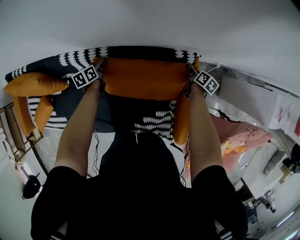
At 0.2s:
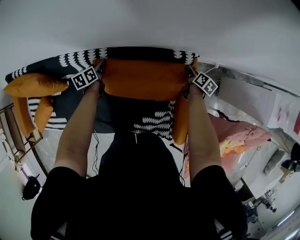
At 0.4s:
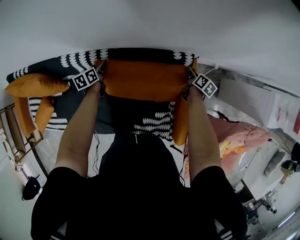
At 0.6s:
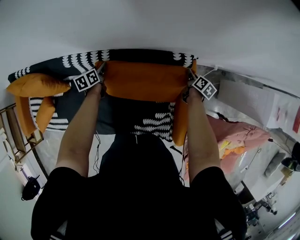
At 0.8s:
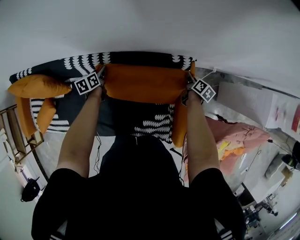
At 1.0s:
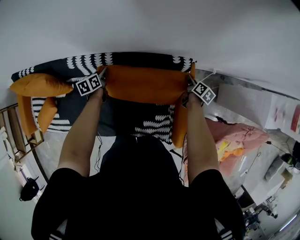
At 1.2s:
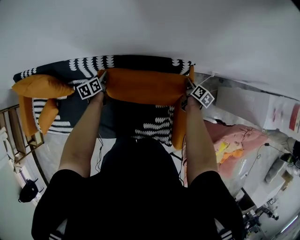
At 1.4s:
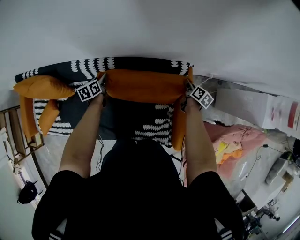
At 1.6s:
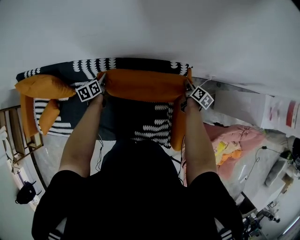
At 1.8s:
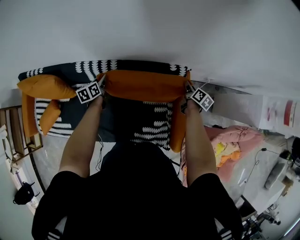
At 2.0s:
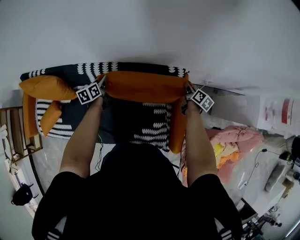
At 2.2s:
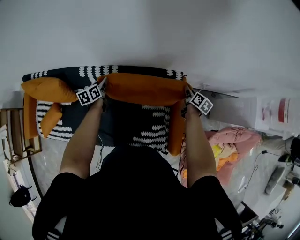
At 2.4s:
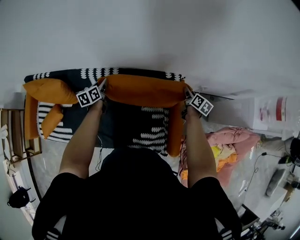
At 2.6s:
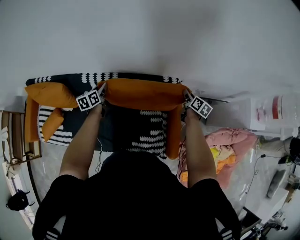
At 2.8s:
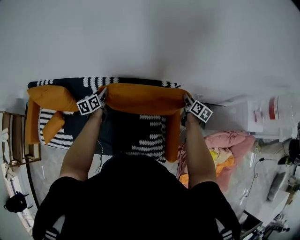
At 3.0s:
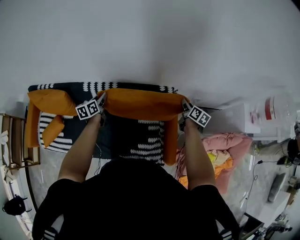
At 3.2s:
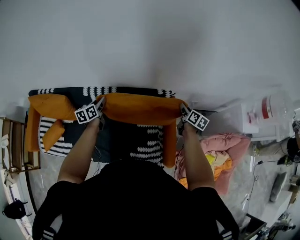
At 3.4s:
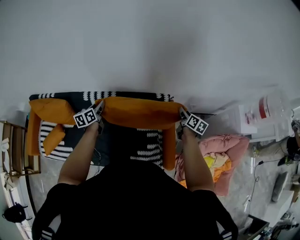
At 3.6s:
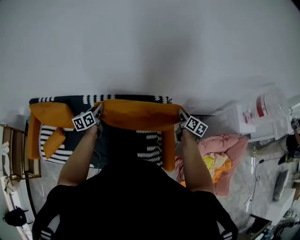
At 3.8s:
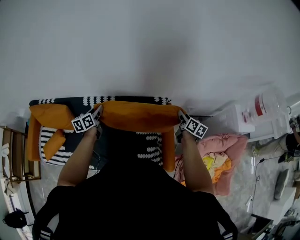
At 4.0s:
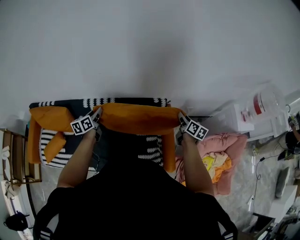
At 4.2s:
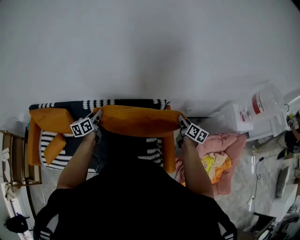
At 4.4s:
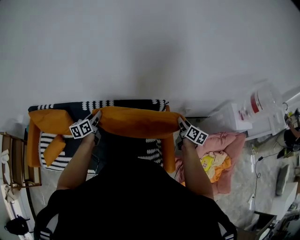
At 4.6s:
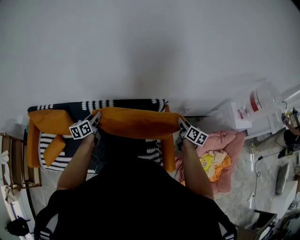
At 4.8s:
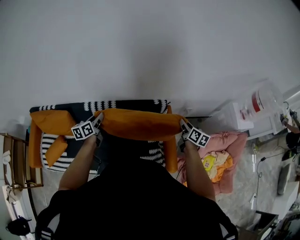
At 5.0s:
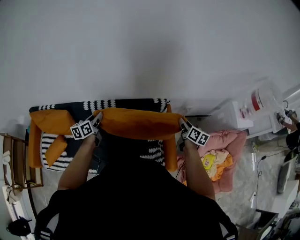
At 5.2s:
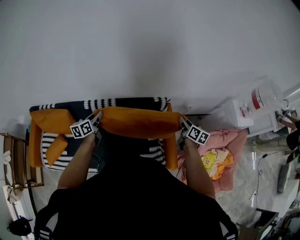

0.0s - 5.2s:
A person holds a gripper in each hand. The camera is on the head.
0.0s - 1.8s: Both grippers move upward and backward, some 15 cm. The right gripper closes up.
1.8s - 3.4s: The grippers both shift upward and backward by roughly 20 cm.
3.4s - 5.2s: The right gripper travels backward by some 10 cm; the left gripper moves some 5 cm.

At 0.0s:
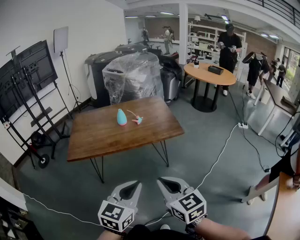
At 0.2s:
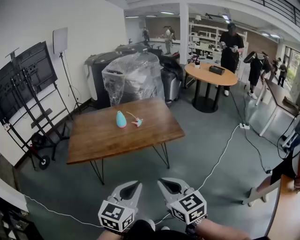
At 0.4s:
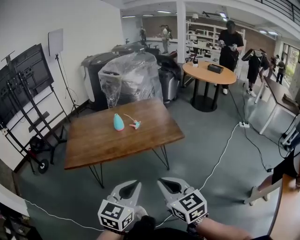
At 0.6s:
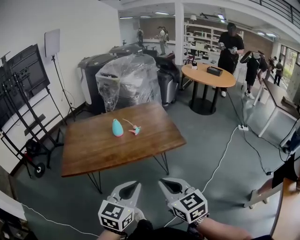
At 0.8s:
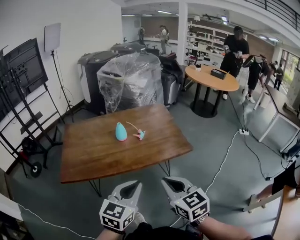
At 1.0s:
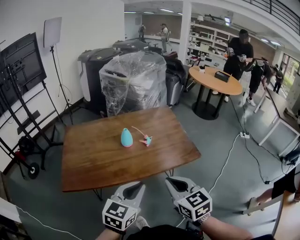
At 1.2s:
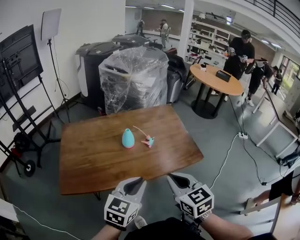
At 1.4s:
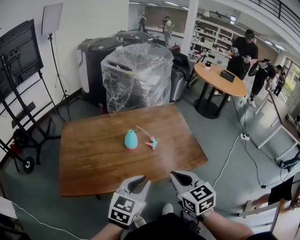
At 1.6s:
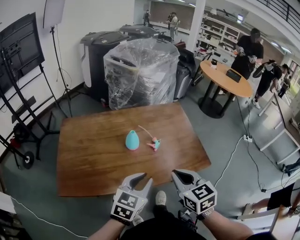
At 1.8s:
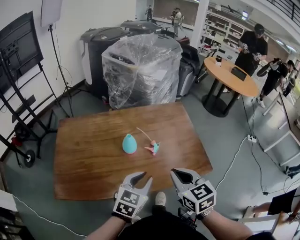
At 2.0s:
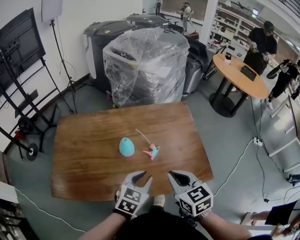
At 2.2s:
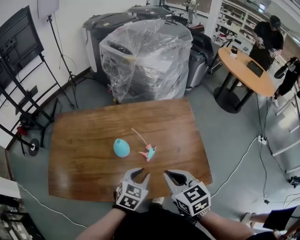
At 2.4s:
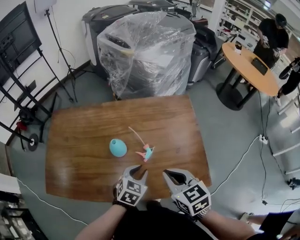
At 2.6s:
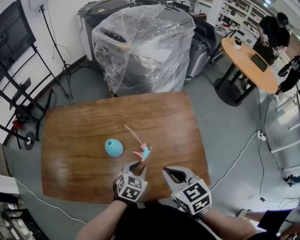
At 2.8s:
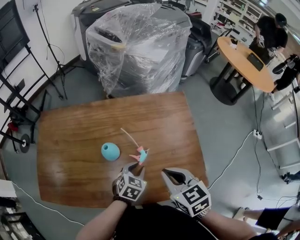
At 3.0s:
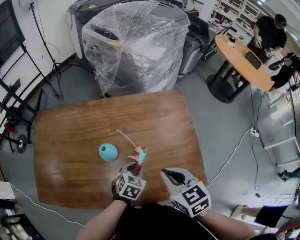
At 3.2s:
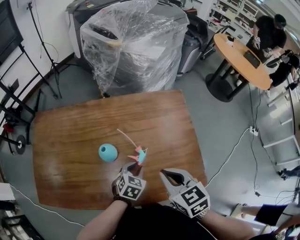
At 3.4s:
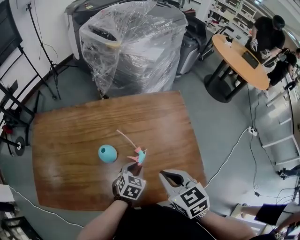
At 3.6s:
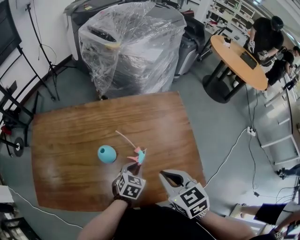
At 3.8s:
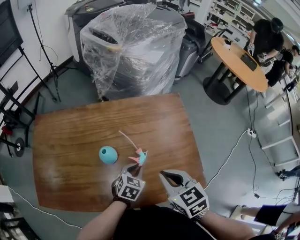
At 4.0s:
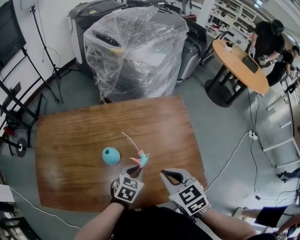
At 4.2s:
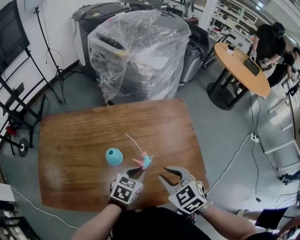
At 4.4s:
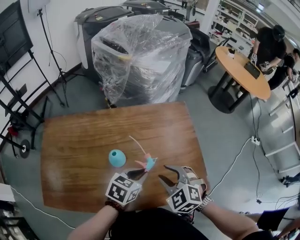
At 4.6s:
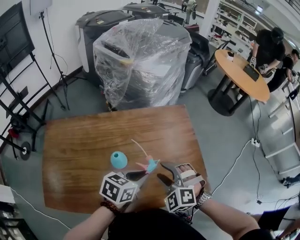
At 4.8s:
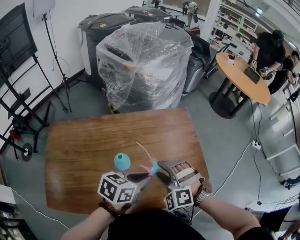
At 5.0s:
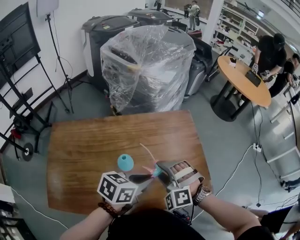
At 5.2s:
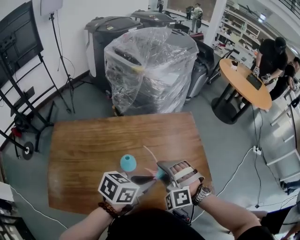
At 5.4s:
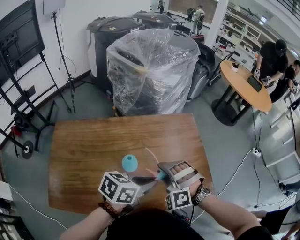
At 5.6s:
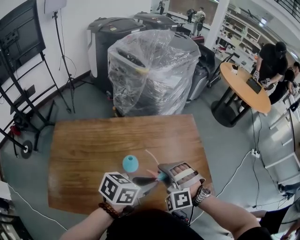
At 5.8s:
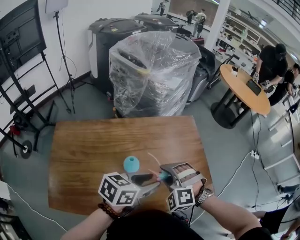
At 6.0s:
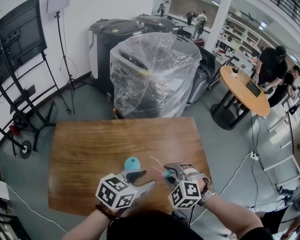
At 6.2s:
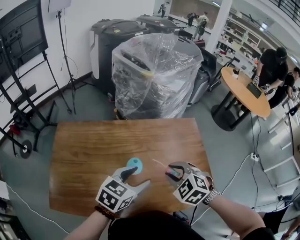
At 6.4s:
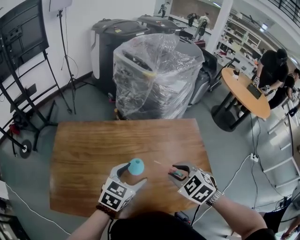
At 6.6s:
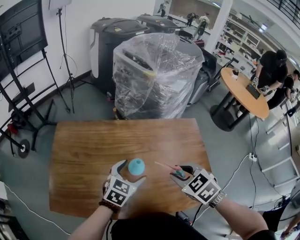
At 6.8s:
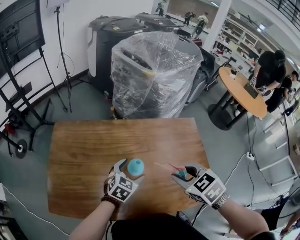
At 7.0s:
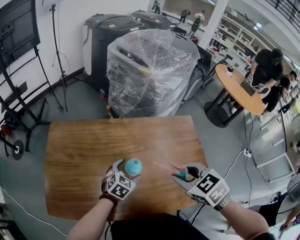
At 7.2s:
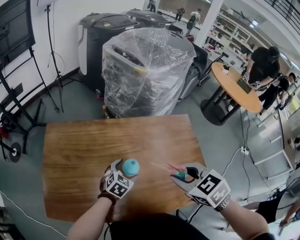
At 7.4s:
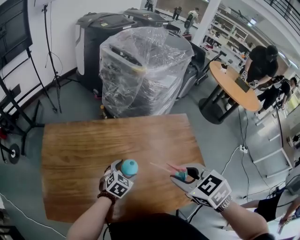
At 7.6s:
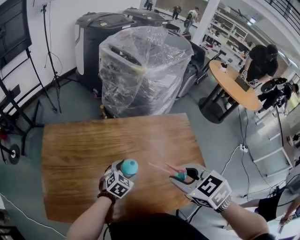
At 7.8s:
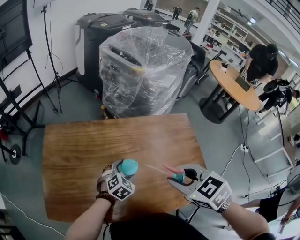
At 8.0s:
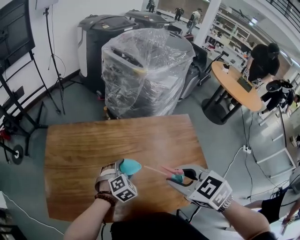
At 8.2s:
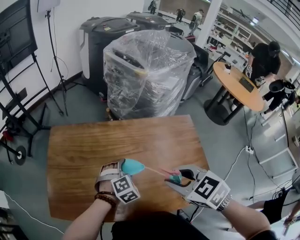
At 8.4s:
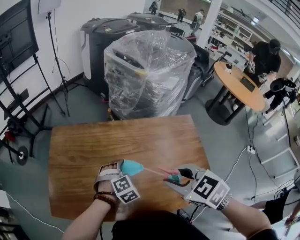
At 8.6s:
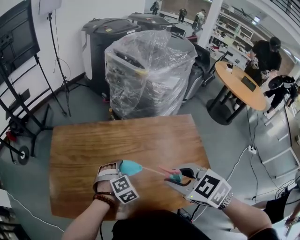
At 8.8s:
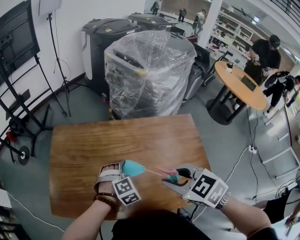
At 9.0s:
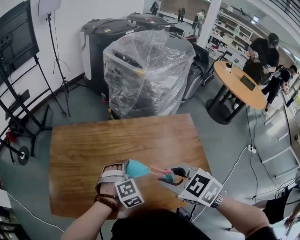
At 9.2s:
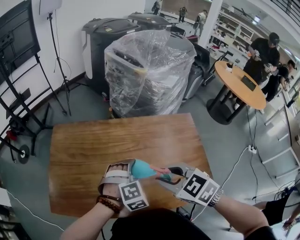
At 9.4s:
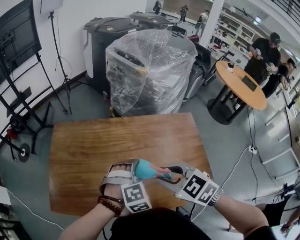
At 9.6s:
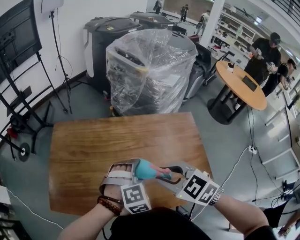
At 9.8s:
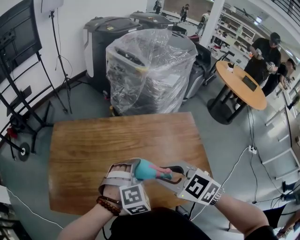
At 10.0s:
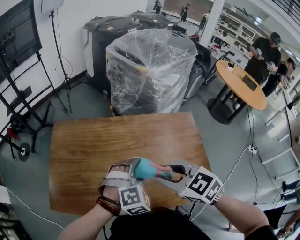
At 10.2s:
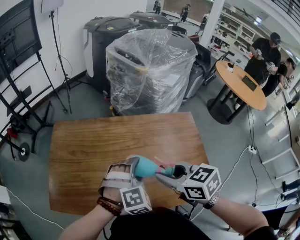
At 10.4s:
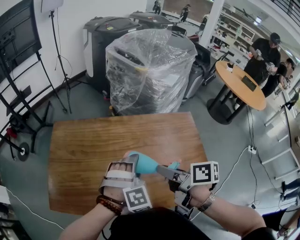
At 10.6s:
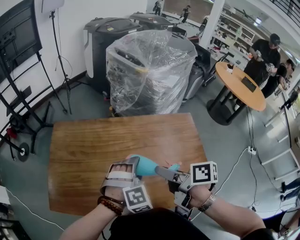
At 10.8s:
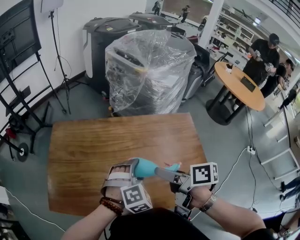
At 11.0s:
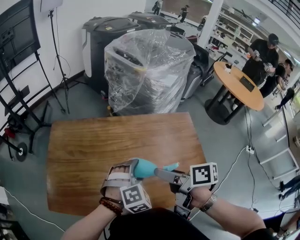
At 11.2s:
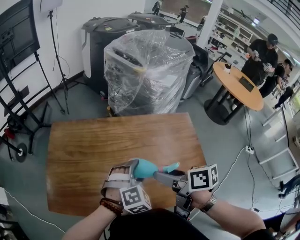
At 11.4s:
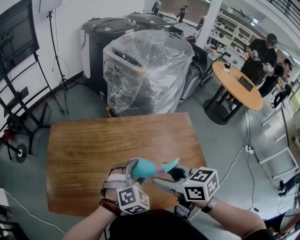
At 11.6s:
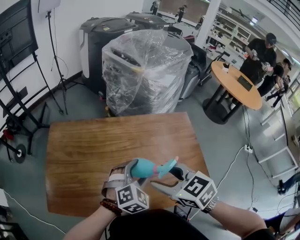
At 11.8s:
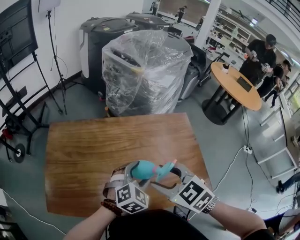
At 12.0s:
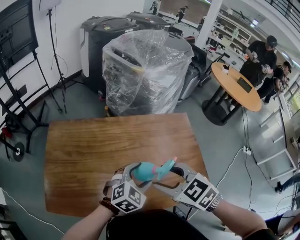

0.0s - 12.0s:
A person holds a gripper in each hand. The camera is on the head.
0.0s - 1.6s: The two grippers go approximately 35 cm forward.
1.6s - 3.0s: The right gripper heads forward and downward, covering some 20 cm. Meanwhile the left gripper heads downward and forward, covering approximately 30 cm, and rotates approximately 30 degrees.
3.0s - 4.4s: The left gripper travels upward by roughly 10 cm, and swivels some 20 degrees. The right gripper changes its angle by some 40 degrees, and opens.
4.4s - 6.0s: The right gripper goes roughly 5 cm to the left. The left gripper heads upward, covering about 10 cm, and opens its fingers.
6.0s - 7.6s: The left gripper is displaced downward by roughly 20 cm, rotates some 30 degrees, and opens its fingers. Meanwhile the right gripper shifts roughly 10 cm upward, and twists approximately 40 degrees clockwise, seen from behind.
7.6s - 9.0s: The left gripper travels upward by roughly 10 cm, and turns by roughly 40 degrees.
9.0s - 10.4s: The left gripper moves upward, about 5 cm. Meanwhile the right gripper rotates around the line of its fingers by approximately 70 degrees, clockwise from behind.
10.4s - 12.0s: The right gripper rotates around the line of its fingers by about 70 degrees, counterclockwise from behind, and opens; the left gripper moves roughly 5 cm, and rotates roughly 40 degrees.

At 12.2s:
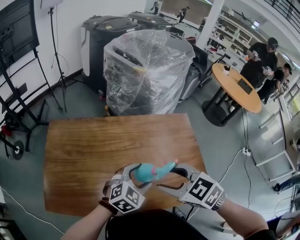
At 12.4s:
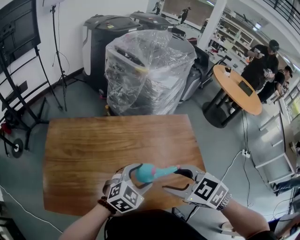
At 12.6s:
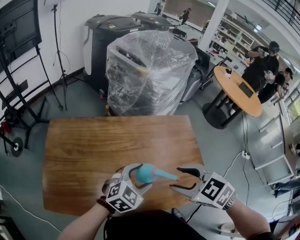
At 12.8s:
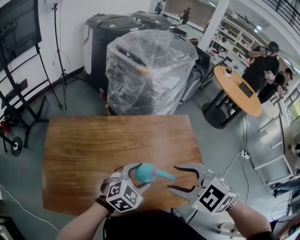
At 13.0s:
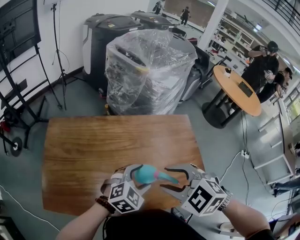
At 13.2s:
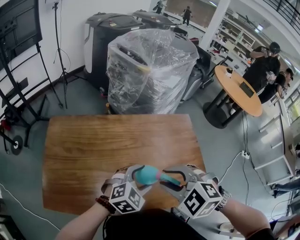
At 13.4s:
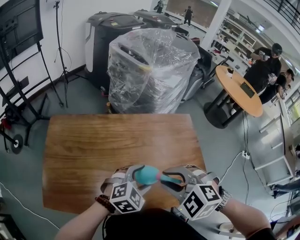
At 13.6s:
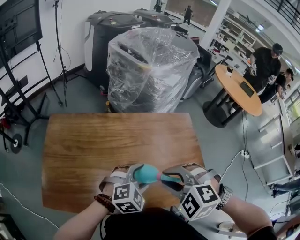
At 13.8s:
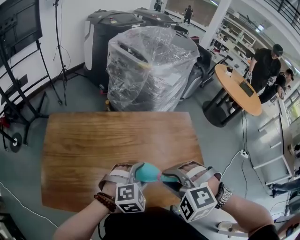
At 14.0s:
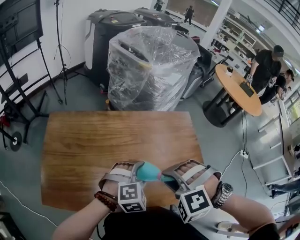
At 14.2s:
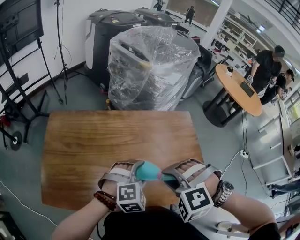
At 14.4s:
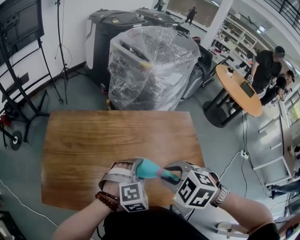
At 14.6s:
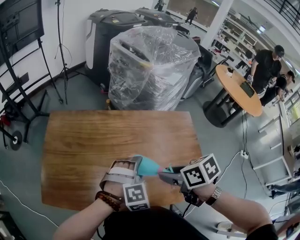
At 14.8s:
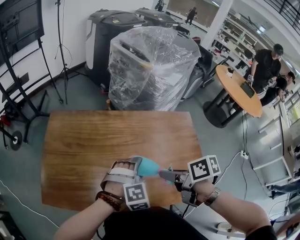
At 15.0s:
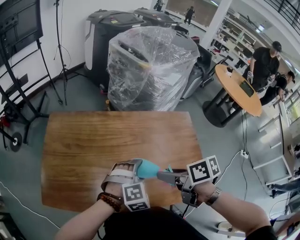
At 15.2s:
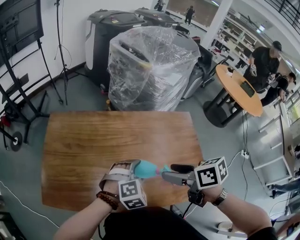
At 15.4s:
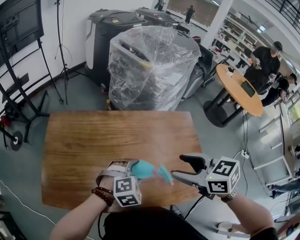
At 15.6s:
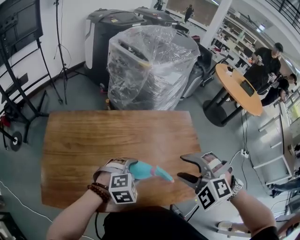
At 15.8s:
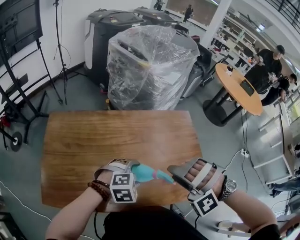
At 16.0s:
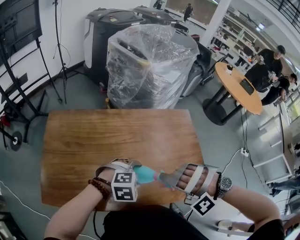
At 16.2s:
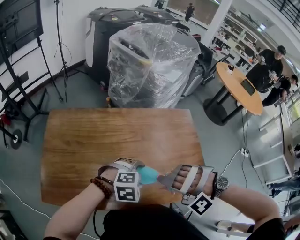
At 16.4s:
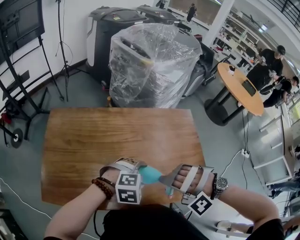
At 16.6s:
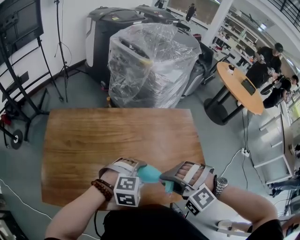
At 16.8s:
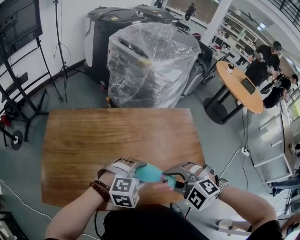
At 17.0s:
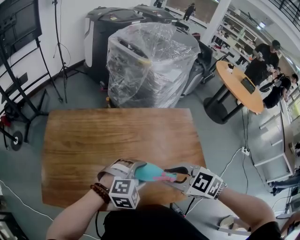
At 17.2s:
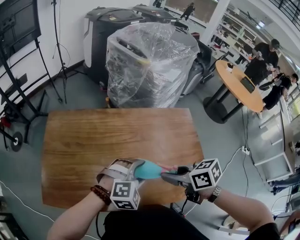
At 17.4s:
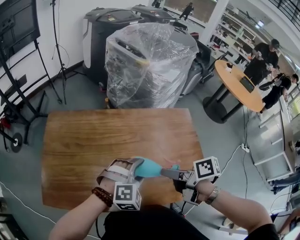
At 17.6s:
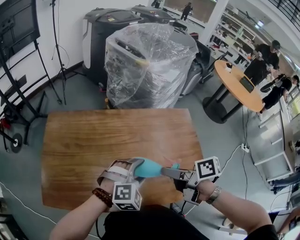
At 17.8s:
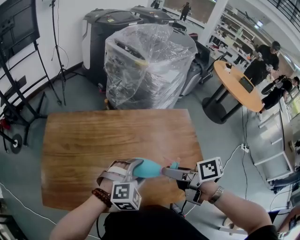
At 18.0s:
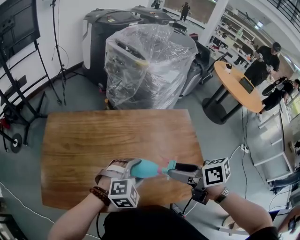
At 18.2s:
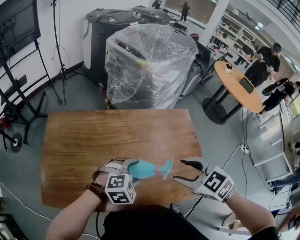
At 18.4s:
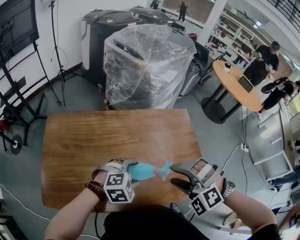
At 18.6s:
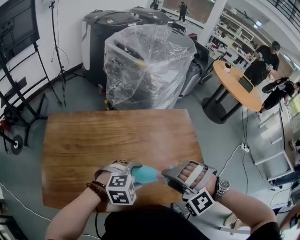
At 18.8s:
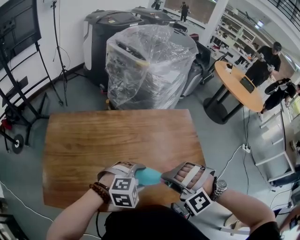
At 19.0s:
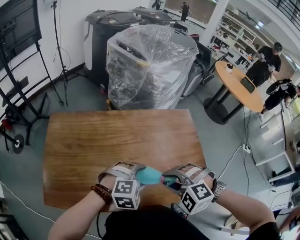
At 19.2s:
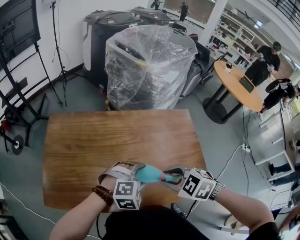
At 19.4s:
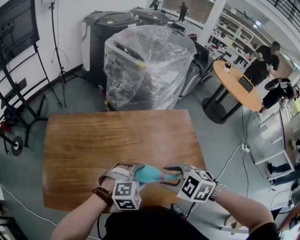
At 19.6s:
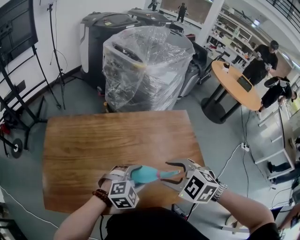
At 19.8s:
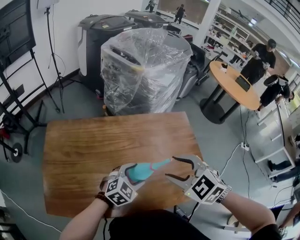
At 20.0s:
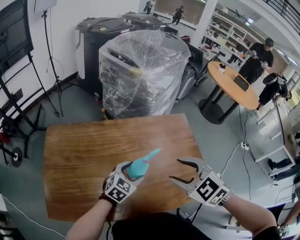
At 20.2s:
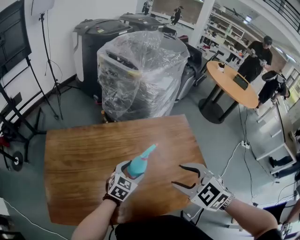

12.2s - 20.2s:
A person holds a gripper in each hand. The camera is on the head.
12.2s - 13.8s: The left gripper changes its angle by about 20 degrees, while the right gripper rotates around the line of its fingers by roughly 50 degrees, counterclockwise from behind, and closes up.
13.8s - 15.4s: The right gripper moves roughly 10 cm, rotates around the line of its fingers by about 60 degrees, clockwise from behind, and opens.
15.4s - 17.0s: The right gripper goes about 10 cm downward, changes its angle by about 20 degrees, and closes its fingers.
17.0s - 18.6s: The right gripper twists roughly 70 degrees counterclockwise, seen from behind, and opens its fingers.
18.6s - 20.2s: The right gripper heads forward, covering about 5 cm, twists approximately 70 degrees clockwise, seen from behind, and closes, then opens again. The left gripper moves forward and downward, about 10 cm, and swivels roughly 40 degrees.
